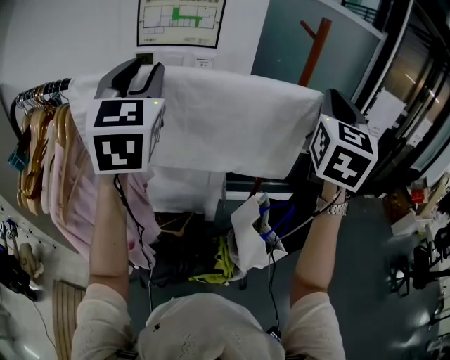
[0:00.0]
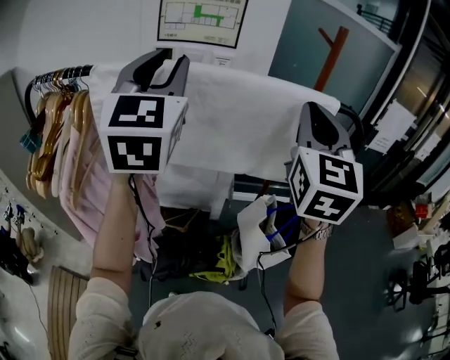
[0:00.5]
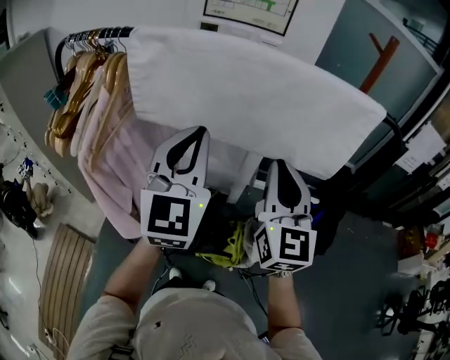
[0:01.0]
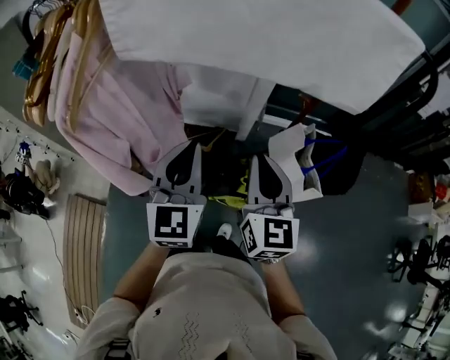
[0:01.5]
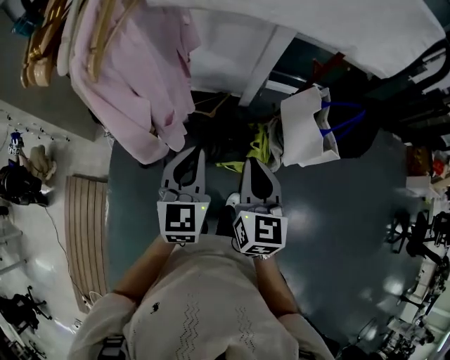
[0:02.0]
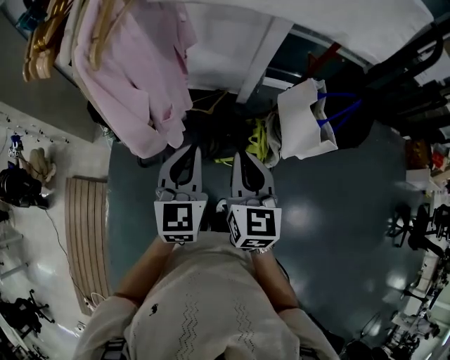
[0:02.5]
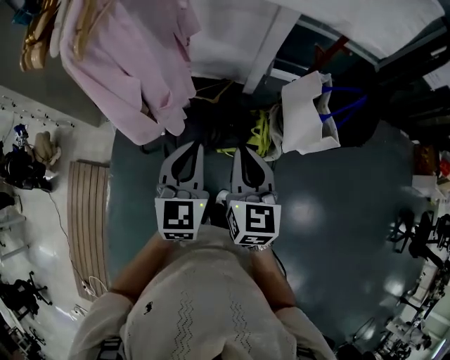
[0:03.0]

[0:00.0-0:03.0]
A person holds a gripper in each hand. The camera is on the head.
0.0 to 1.5 s: The left gripper moves downward and backward, about 35 cm, swivels some 20 degrees, and closes its fingers; the right gripper heads downward, to the left and backward, covering some 40 cm, and changes its angle by about 40 degrees.
1.5 to 3.0 s: The right gripper heads backward, downward and to the left, covering roughly 15 cm; the left gripper moves backward and downward, approximately 15 cm.

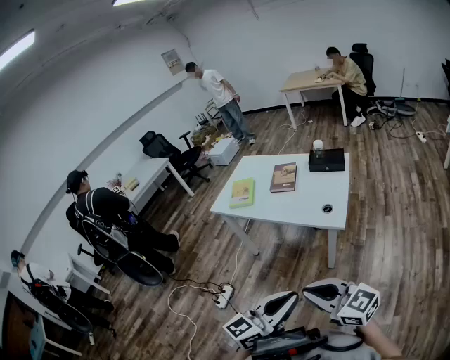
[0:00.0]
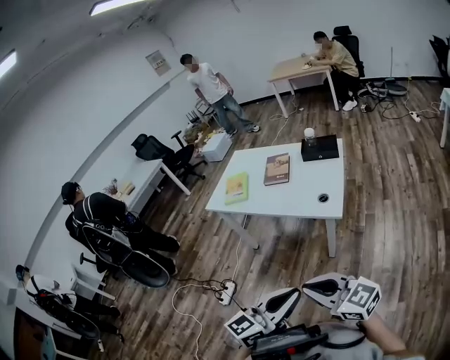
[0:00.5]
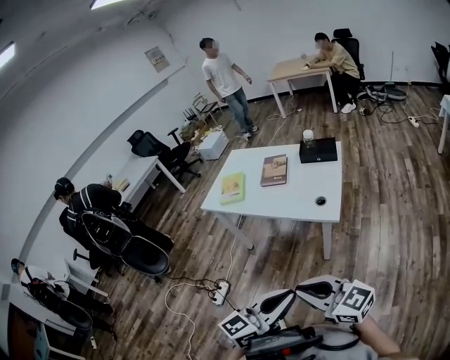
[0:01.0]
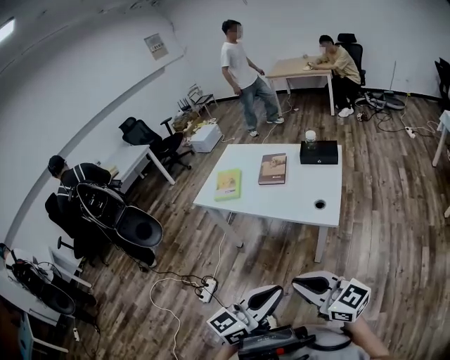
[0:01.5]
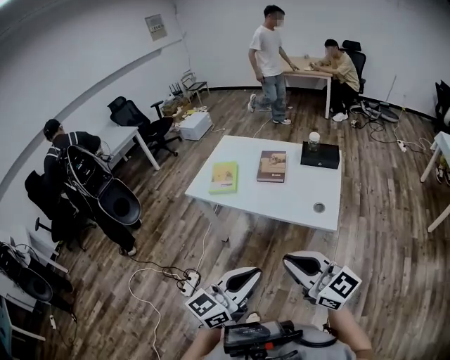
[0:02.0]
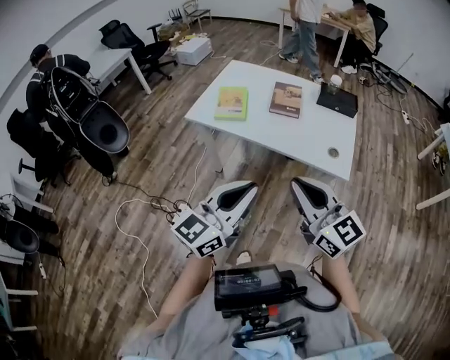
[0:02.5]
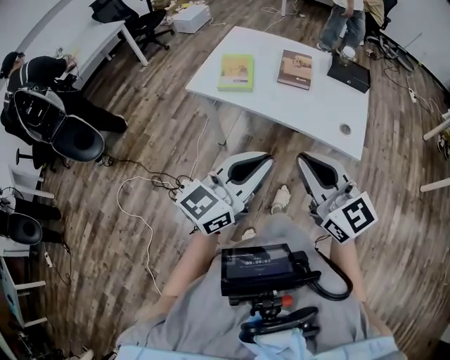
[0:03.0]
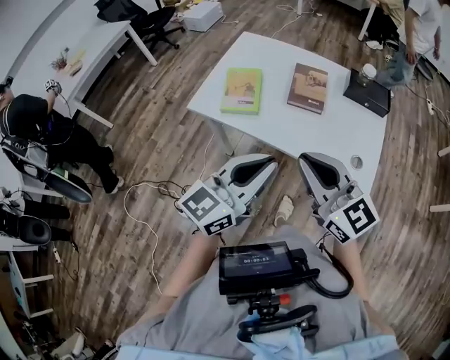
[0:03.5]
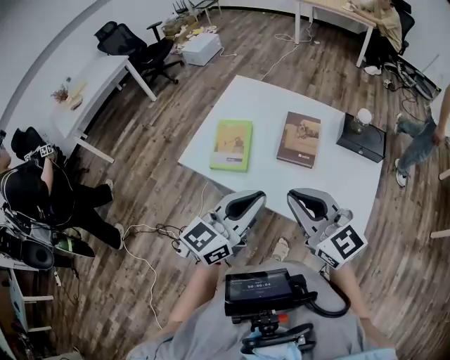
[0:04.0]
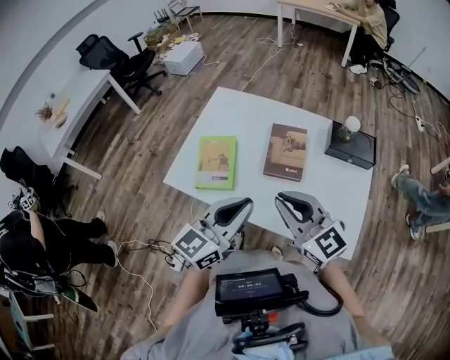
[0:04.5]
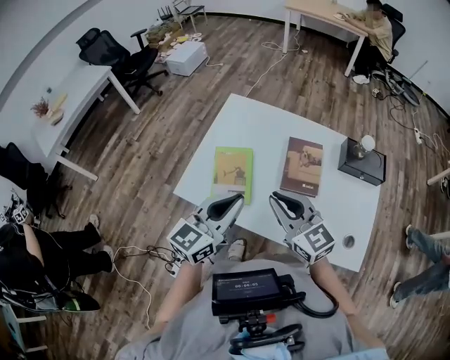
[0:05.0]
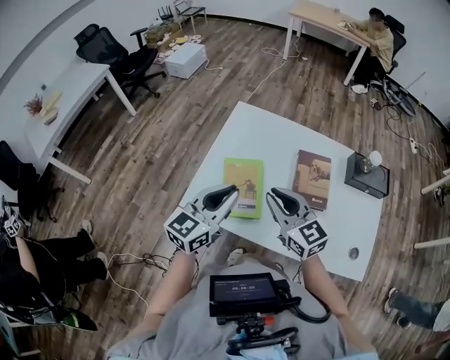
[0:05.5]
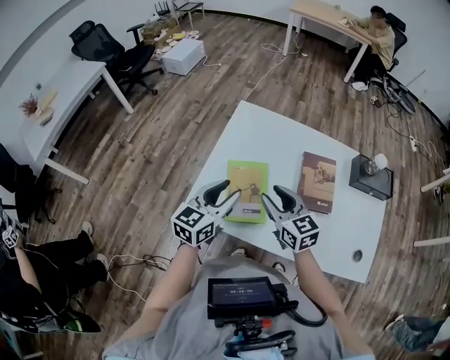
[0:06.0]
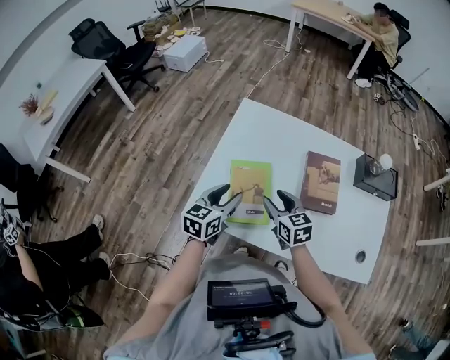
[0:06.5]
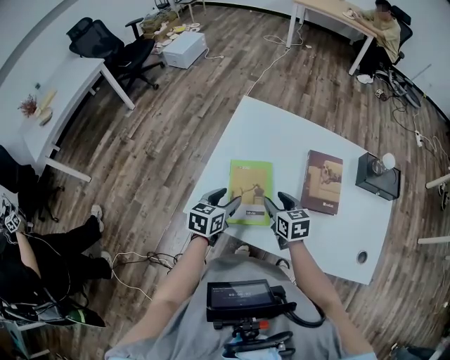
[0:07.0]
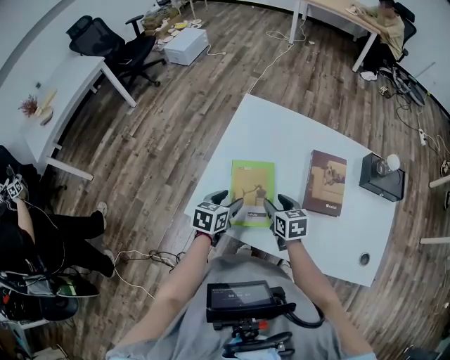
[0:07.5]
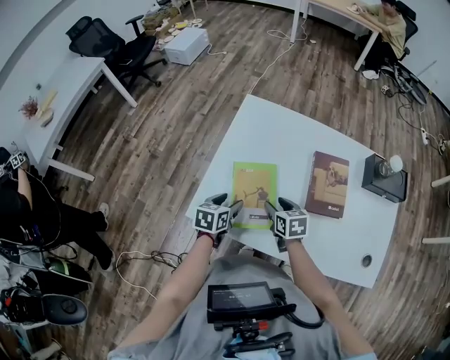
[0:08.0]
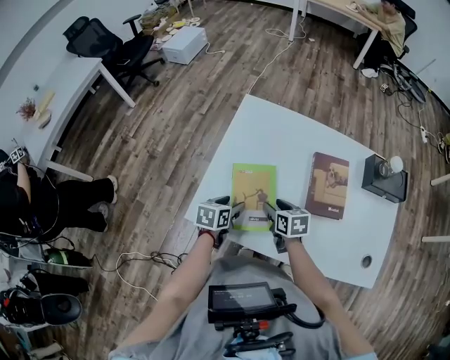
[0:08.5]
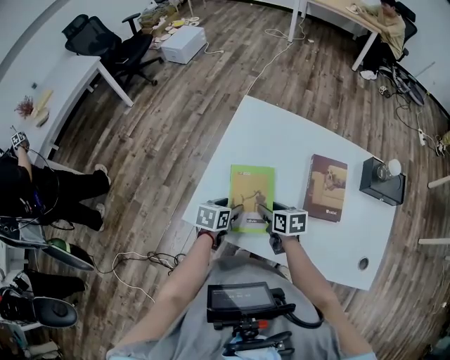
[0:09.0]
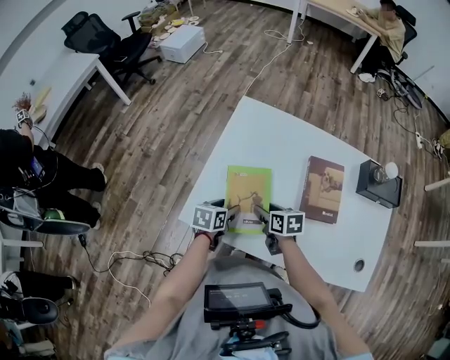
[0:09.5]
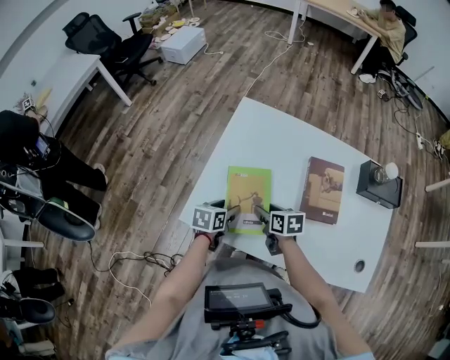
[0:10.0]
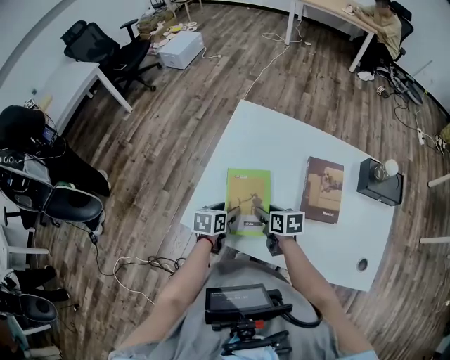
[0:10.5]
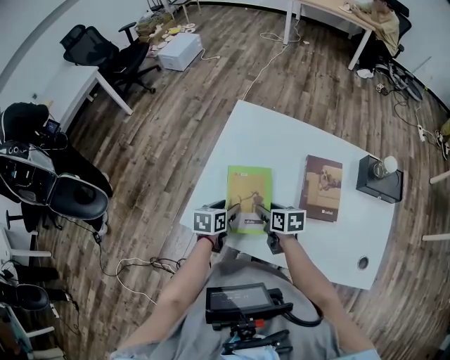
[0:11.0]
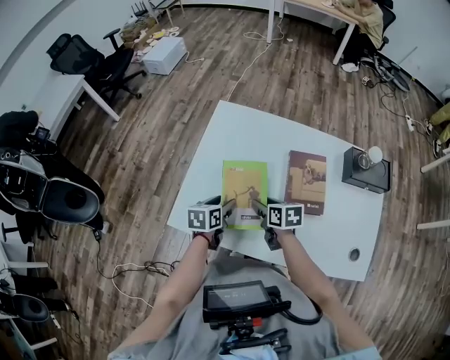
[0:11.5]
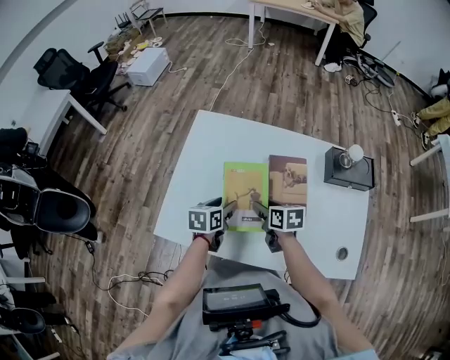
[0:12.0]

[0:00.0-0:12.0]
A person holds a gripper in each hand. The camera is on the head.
0.0 to 2.0 s: The left gripper shifts roughly 15 cm forward and to the left, while the right gripper is displaced forward by roughly 15 cm.
2.0 to 4.0 s: Both grippers travel together forward, some 35 cm.
4.0 to 6.0 s: The left gripper heads forward, to the left and downward, covering approximately 35 cm, and opens its fingers. Meanwhile the right gripper heads forward, downward and to the left, covering approximately 30 cm, rotates about 20 degrees, and opens its fingers.
6.0 to 8.0 s: The two grippers go about 20 cm downward. The right gripper changes its angle by some 30 degrees. Meanwhile the left gripper tilts its fingers some 30 degrees downward.
8.0 to 10.0 s: There are only small adjustments of the grippers.
10.0 to 12.0 s: Both grippers move to the right and upward, approximately 15 cm.

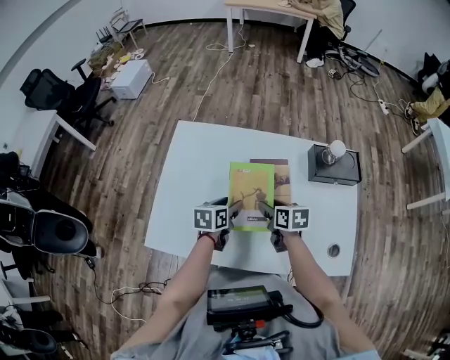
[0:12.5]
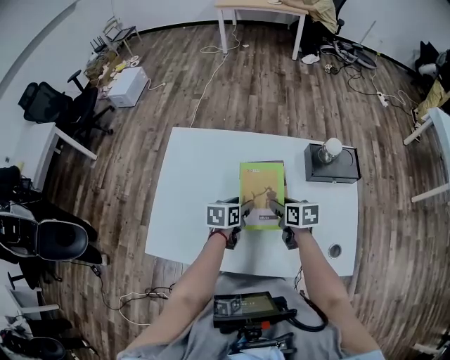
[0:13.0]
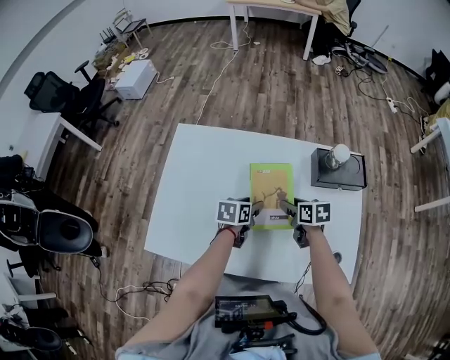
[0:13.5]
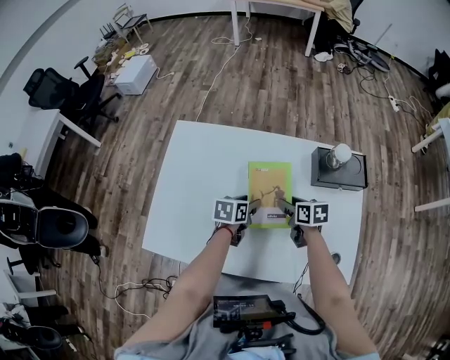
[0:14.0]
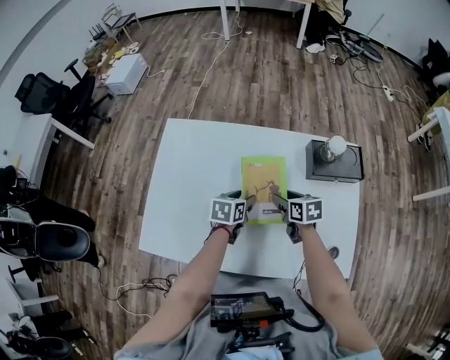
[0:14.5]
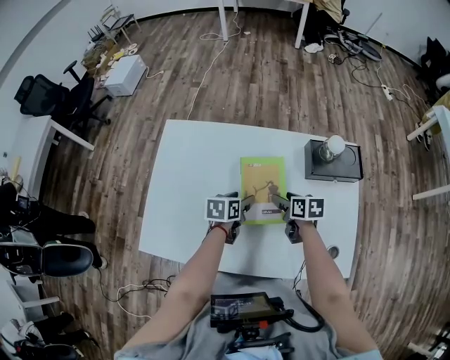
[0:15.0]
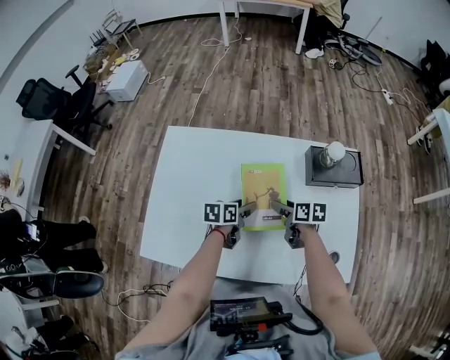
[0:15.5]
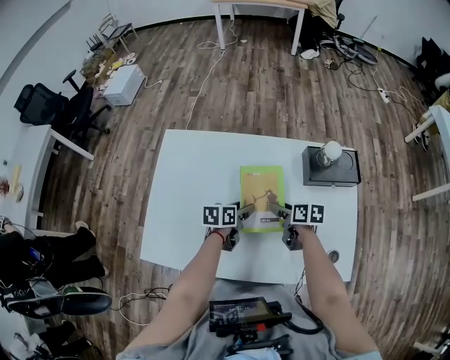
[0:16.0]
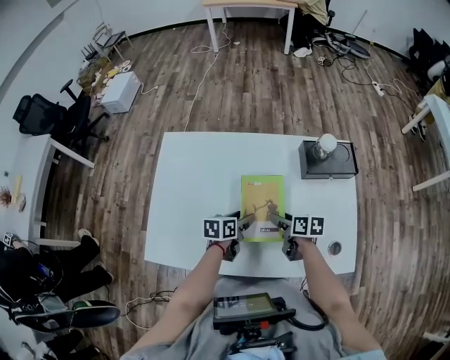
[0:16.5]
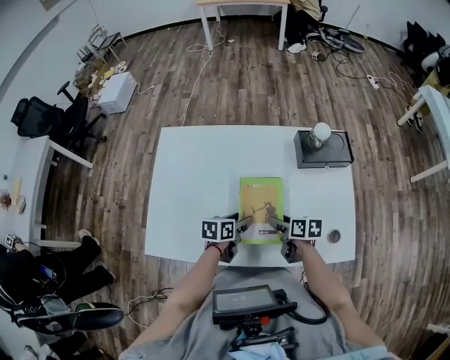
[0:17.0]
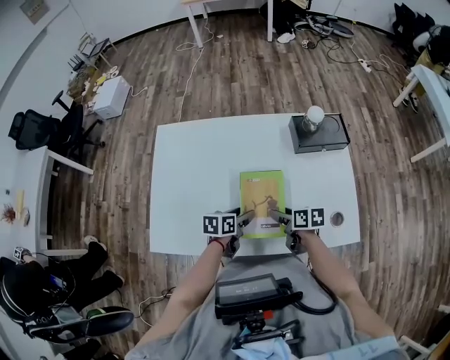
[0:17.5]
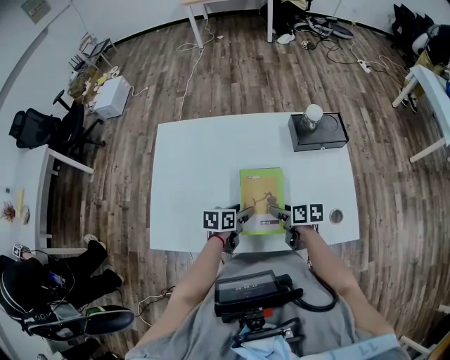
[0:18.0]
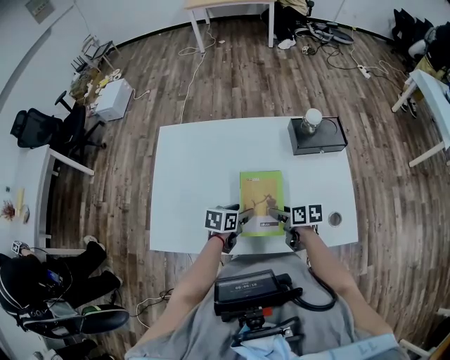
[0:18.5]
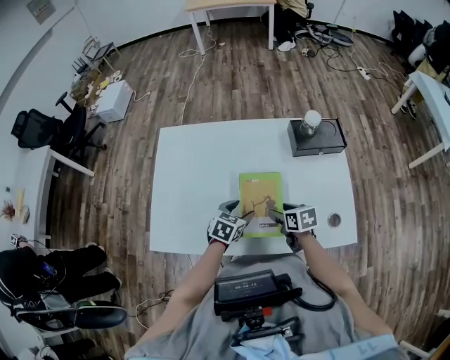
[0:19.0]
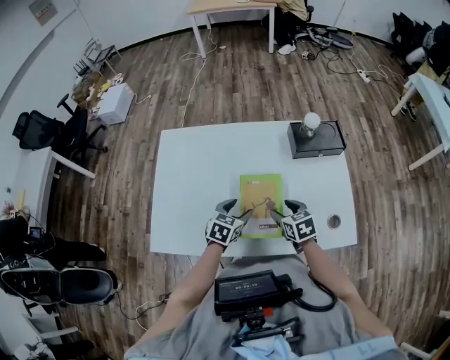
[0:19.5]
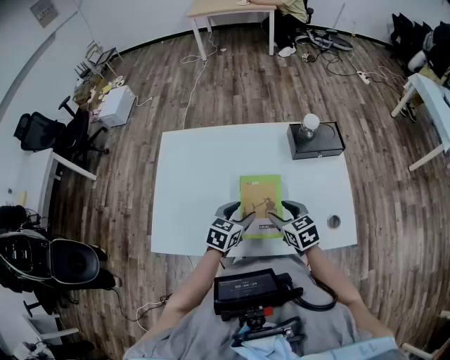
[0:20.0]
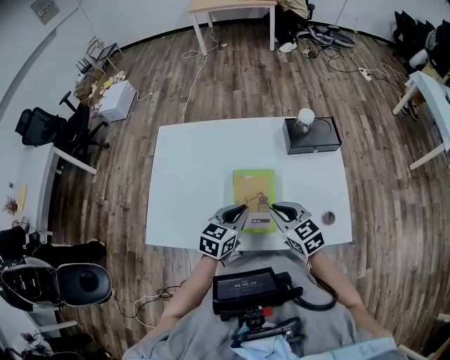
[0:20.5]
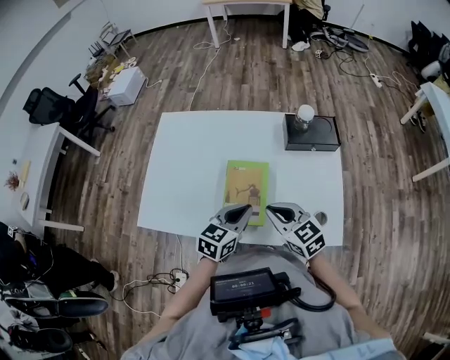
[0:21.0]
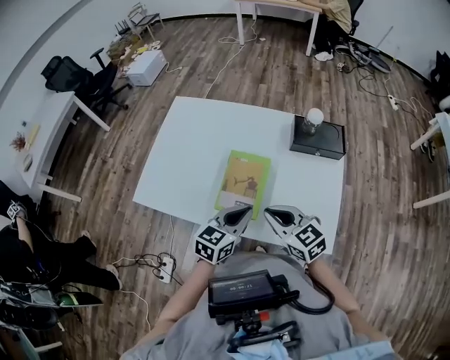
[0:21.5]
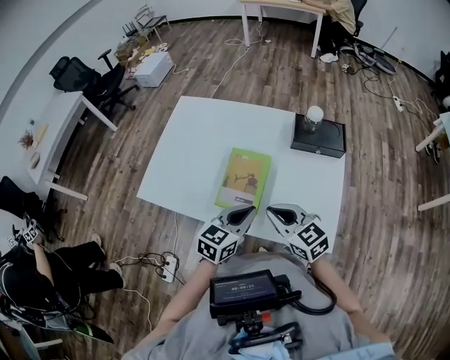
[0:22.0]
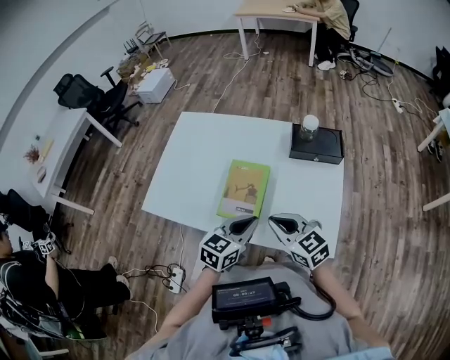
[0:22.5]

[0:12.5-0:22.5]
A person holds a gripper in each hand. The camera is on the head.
12.5 to 14.5 s: The two grippers go some 10 cm to the right.
14.5 to 16.5 s: Both grippers travel together backward, about 5 cm. The right gripper swivels roughly 20 degrees.
16.5 to 18.5 s: Both grippers move backward, about 5 cm.
18.5 to 20.5 s: The grippers both shift upward by approximately 10 cm. The left gripper turns by about 30 degrees, and closes its fingers; the right gripper rolls counterclockwise, seen from behind, by some 50 degrees, and closes.
20.5 to 22.5 s: The right gripper shifts roughly 10 cm backward. The left gripper moves backward and to the right, roughly 15 cm.

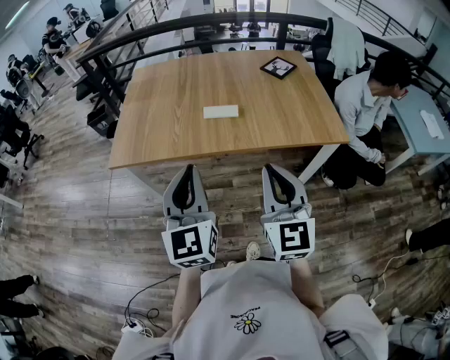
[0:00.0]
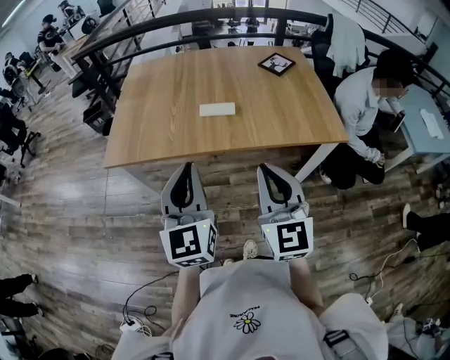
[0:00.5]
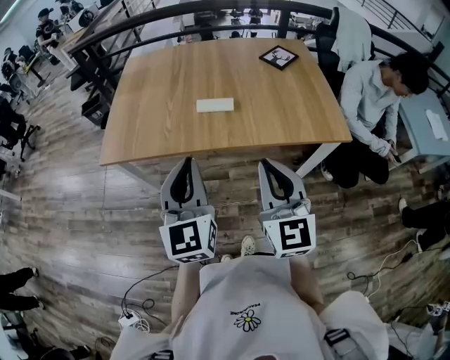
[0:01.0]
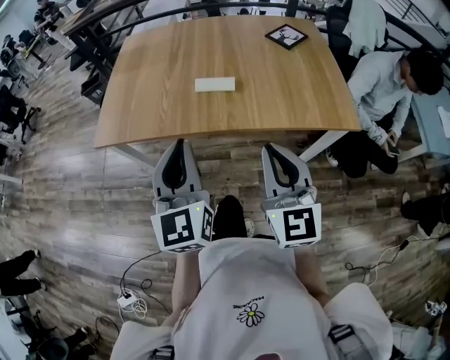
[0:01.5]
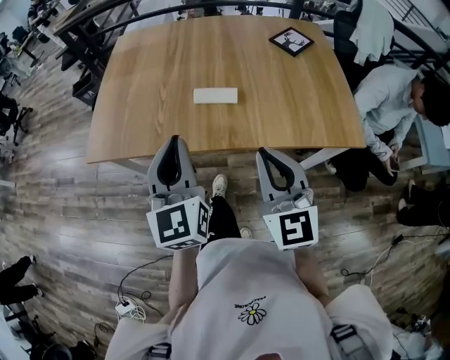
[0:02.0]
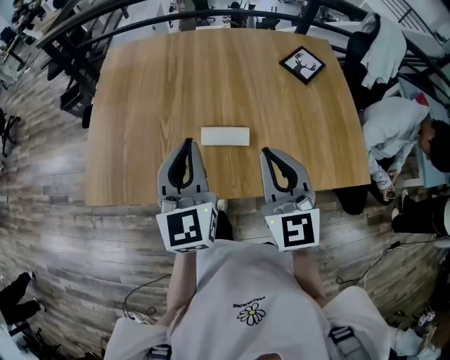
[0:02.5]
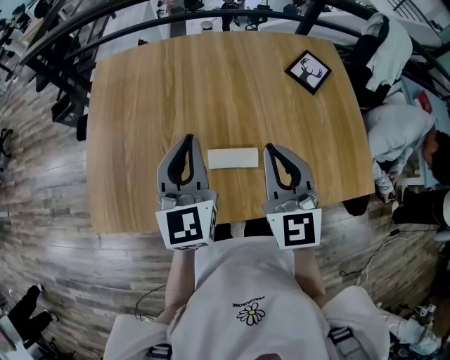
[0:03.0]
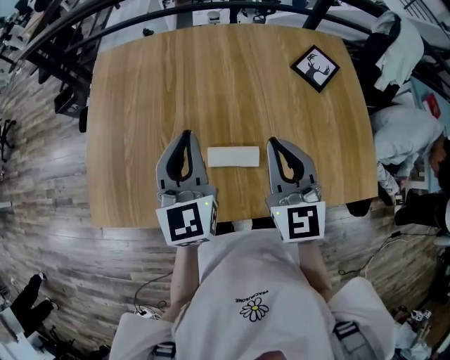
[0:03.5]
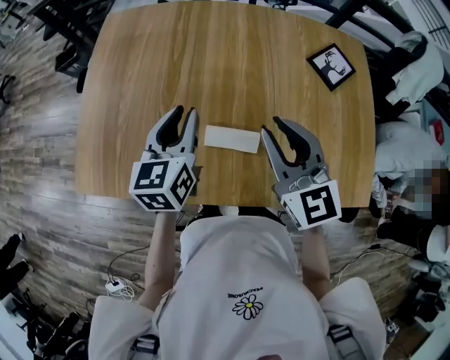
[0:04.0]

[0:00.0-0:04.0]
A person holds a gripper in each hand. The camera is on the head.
0.0 to 2.0 s: The two grippers go some 15 cm forward.
2.0 to 4.0 s: The grippers both shift forward by some 30 cm. The left gripper turns by roughly 30 degrees, and opens.
